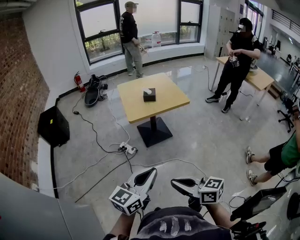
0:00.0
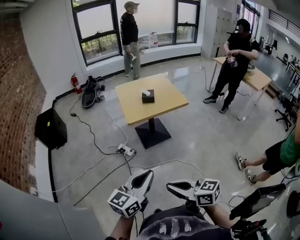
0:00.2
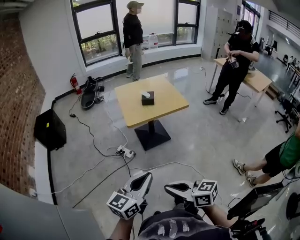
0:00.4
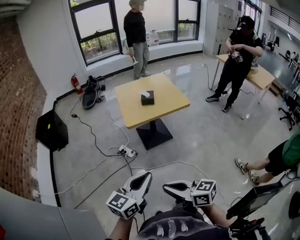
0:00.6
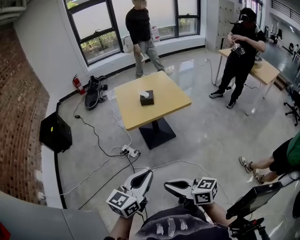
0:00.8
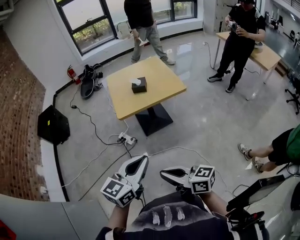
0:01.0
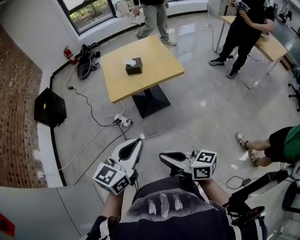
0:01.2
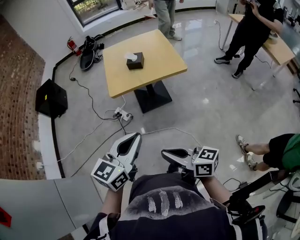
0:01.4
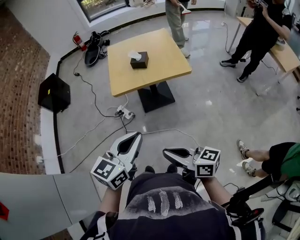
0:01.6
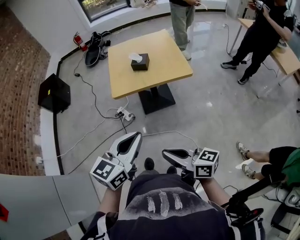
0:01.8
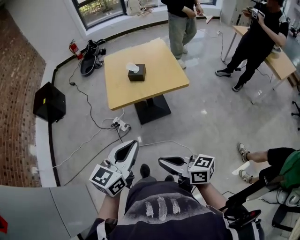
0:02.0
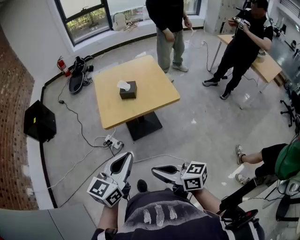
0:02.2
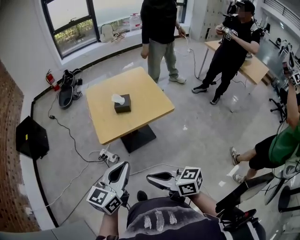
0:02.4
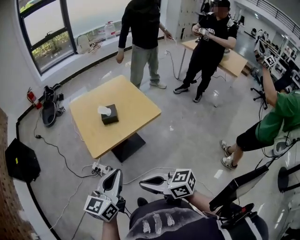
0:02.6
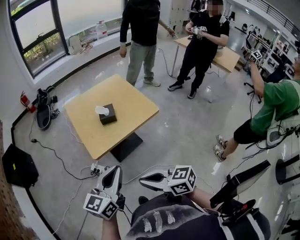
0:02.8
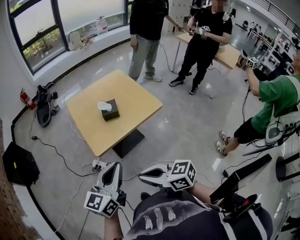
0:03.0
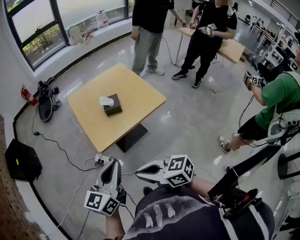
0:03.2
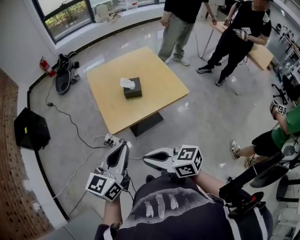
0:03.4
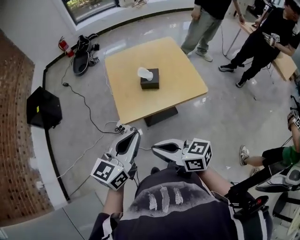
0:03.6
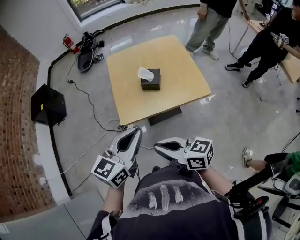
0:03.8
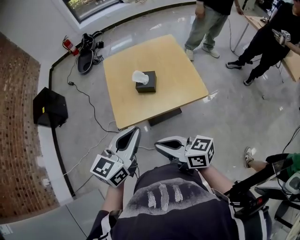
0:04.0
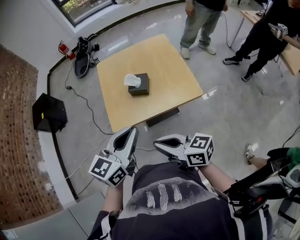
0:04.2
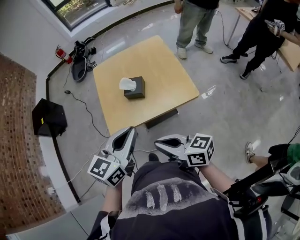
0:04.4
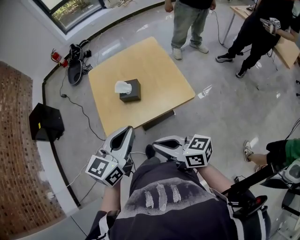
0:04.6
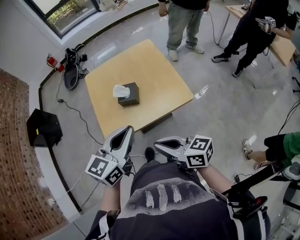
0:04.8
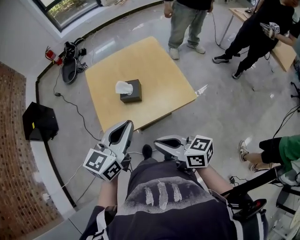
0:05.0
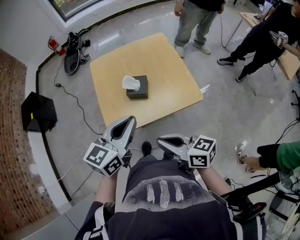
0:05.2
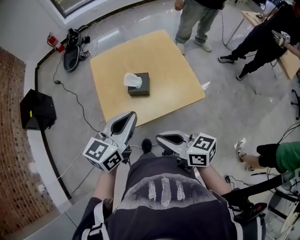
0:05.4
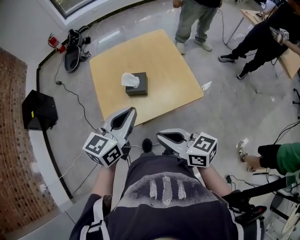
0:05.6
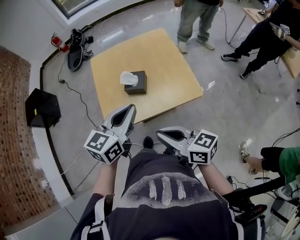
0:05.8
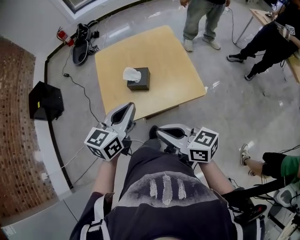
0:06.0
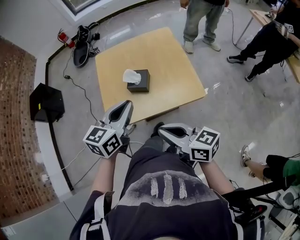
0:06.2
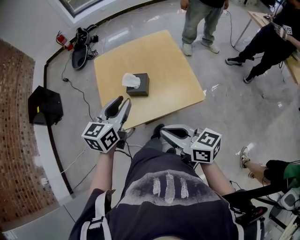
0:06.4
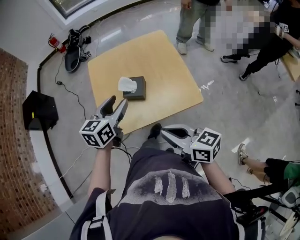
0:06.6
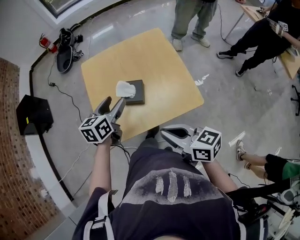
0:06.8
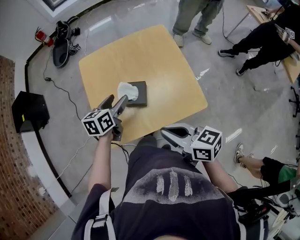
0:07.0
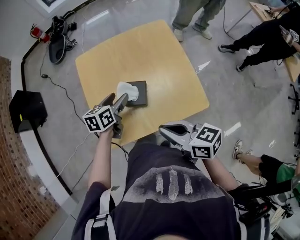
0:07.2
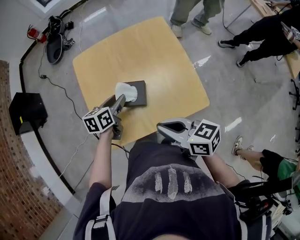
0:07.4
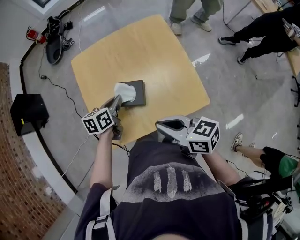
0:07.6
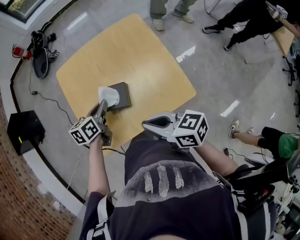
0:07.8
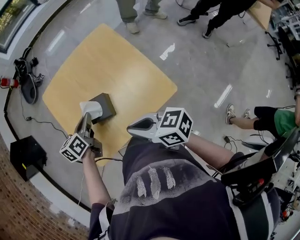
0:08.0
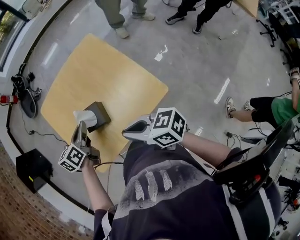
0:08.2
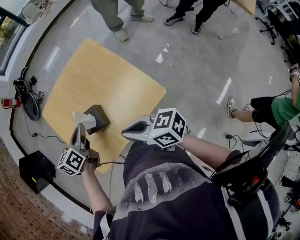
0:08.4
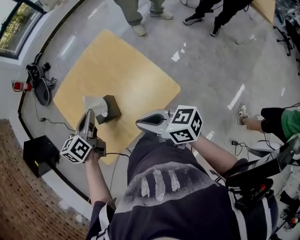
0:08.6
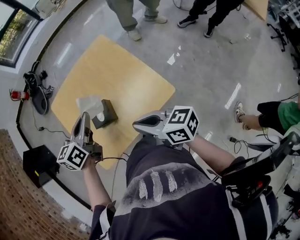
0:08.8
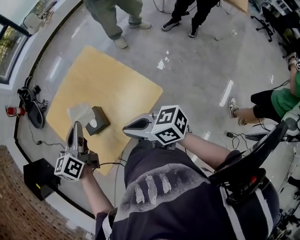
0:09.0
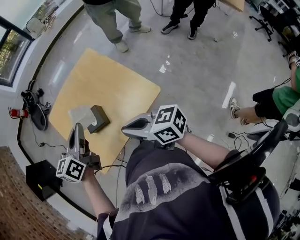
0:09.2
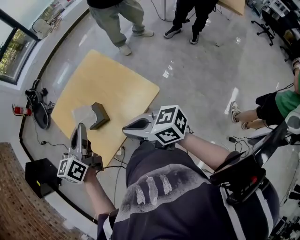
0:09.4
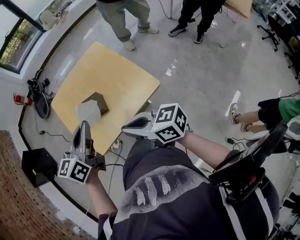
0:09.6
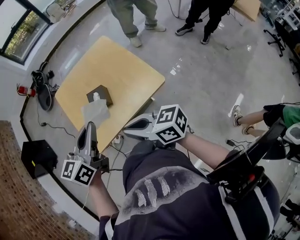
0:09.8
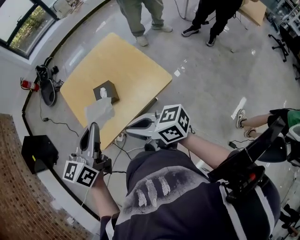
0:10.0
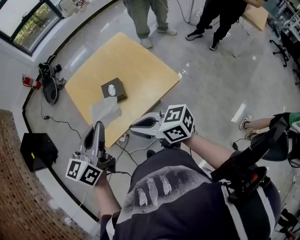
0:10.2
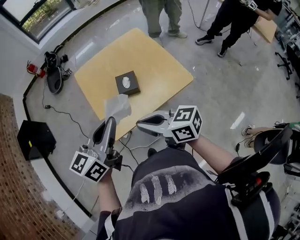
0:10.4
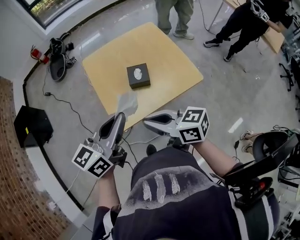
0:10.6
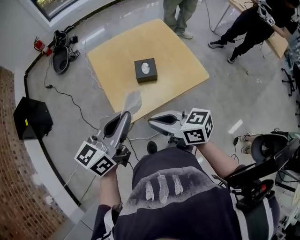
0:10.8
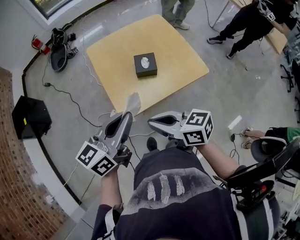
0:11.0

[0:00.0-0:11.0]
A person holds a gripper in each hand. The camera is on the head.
0:00.0 to 0:01.6: The left gripper goes some 25 cm forward and to the right, while the right gripper shifts approximately 25 cm to the right and forward.
0:01.6 to 0:03.2: Both grippers move forward and to the left, roughly 25 cm.
0:03.2 to 0:04.8: The two grippers go approximately 25 cm to the right and forward.
0:04.8 to 0:06.2: The left gripper is displaced forward by roughly 10 cm.
0:06.2 to 0:07.8: The right gripper travels forward and downward by some 20 cm, while the left gripper moves forward and downward, roughly 30 cm, turns by roughly 30 degrees, and opens, then closes once more.
0:07.8 to 0:09.4: The left gripper heads upward and backward, covering some 25 cm, and changes its angle by approximately 30 degrees. Meanwhile the right gripper is displaced backward, upward and to the right by about 15 cm.
0:09.4 to 0:11.0: The right gripper heads to the left, covering some 25 cm, while the left gripper is displaced to the left and backward by some 25 cm.

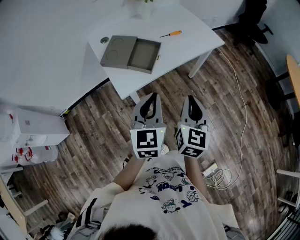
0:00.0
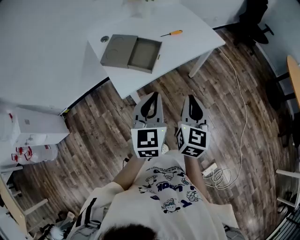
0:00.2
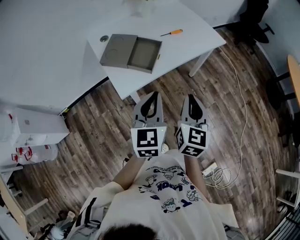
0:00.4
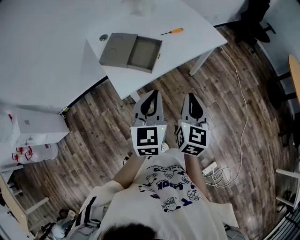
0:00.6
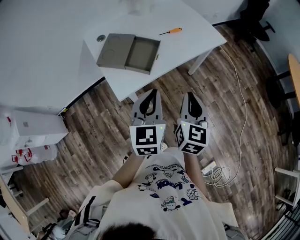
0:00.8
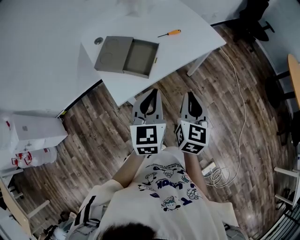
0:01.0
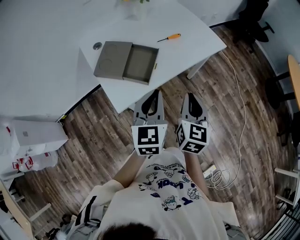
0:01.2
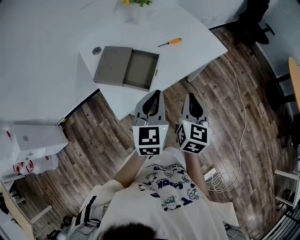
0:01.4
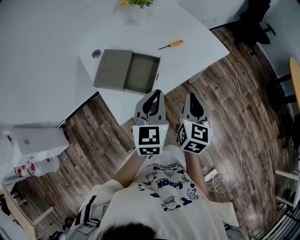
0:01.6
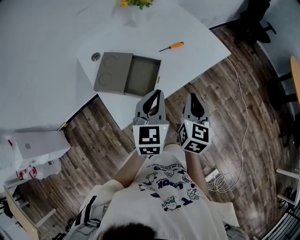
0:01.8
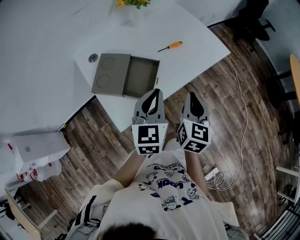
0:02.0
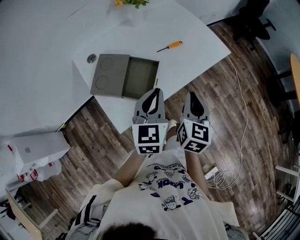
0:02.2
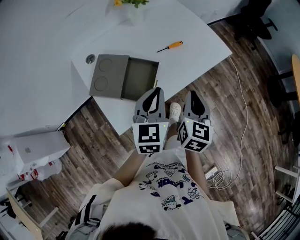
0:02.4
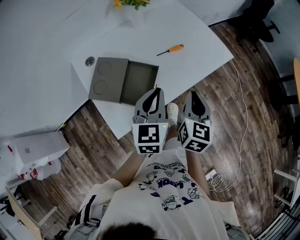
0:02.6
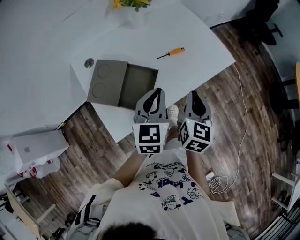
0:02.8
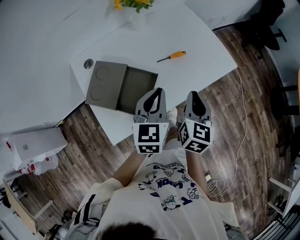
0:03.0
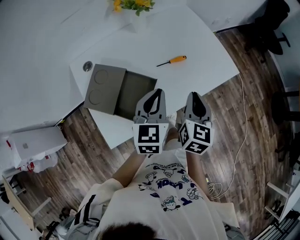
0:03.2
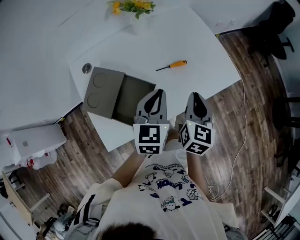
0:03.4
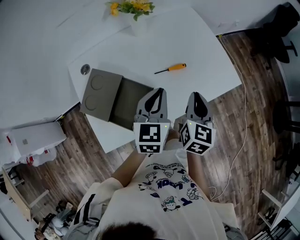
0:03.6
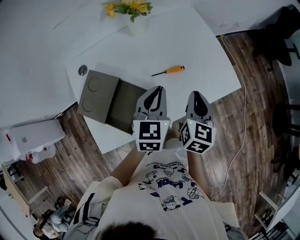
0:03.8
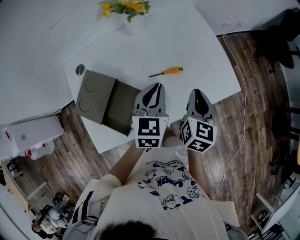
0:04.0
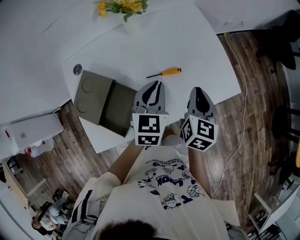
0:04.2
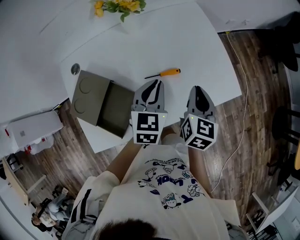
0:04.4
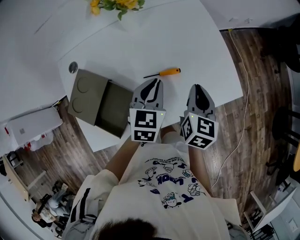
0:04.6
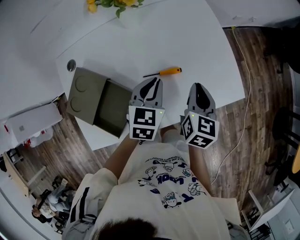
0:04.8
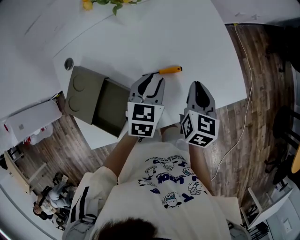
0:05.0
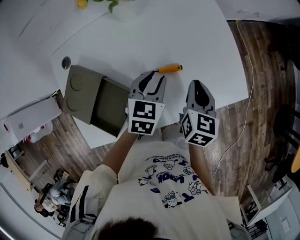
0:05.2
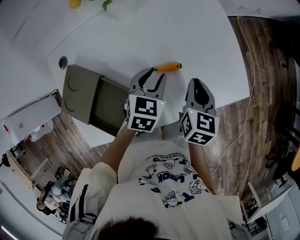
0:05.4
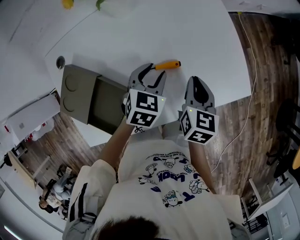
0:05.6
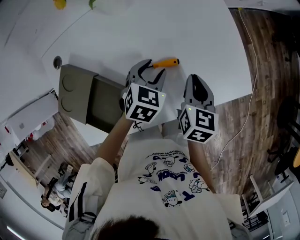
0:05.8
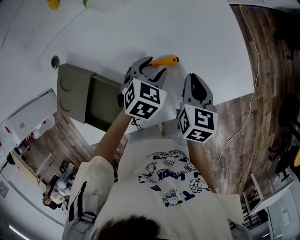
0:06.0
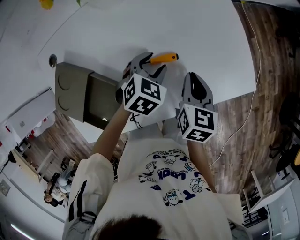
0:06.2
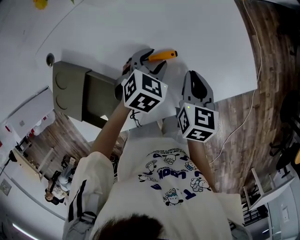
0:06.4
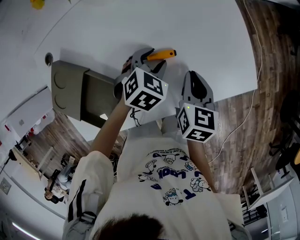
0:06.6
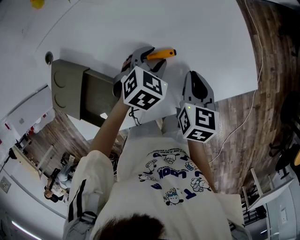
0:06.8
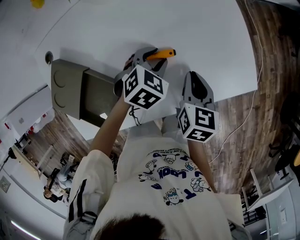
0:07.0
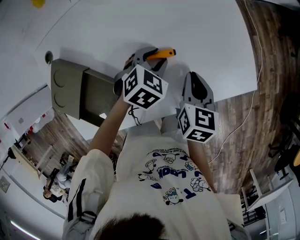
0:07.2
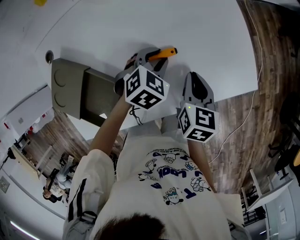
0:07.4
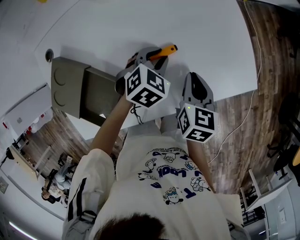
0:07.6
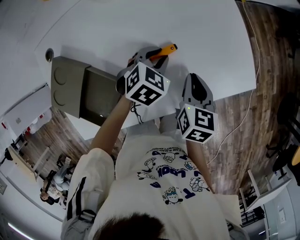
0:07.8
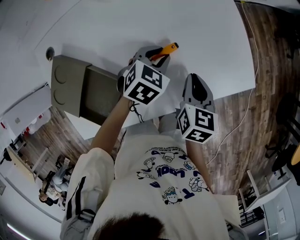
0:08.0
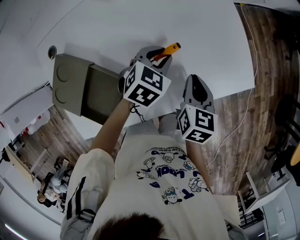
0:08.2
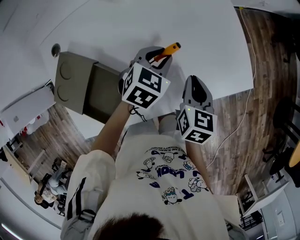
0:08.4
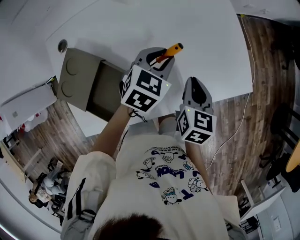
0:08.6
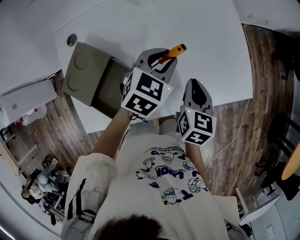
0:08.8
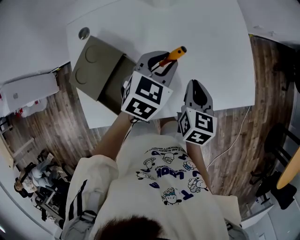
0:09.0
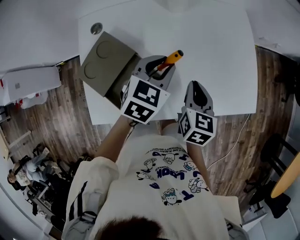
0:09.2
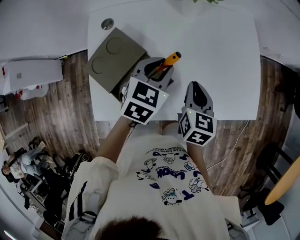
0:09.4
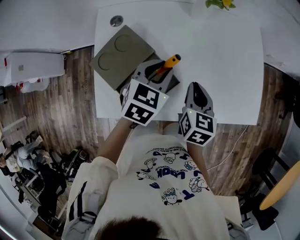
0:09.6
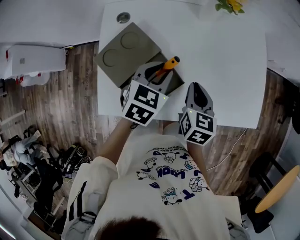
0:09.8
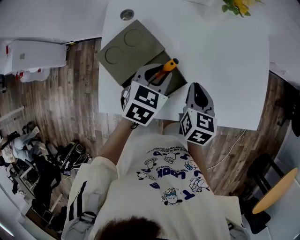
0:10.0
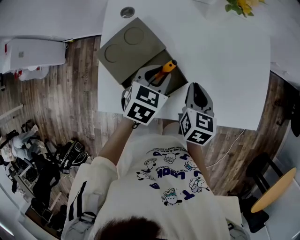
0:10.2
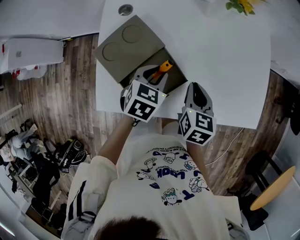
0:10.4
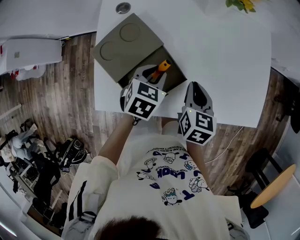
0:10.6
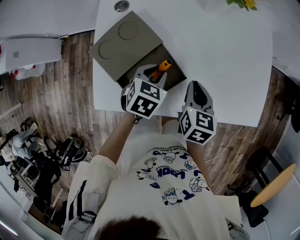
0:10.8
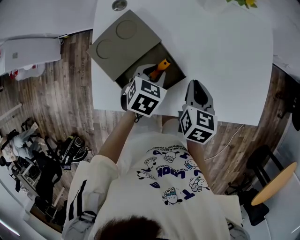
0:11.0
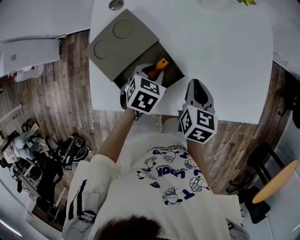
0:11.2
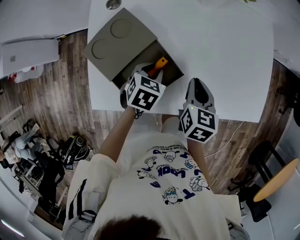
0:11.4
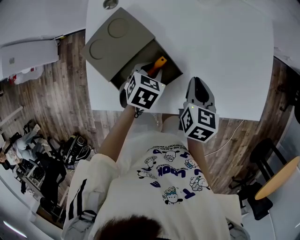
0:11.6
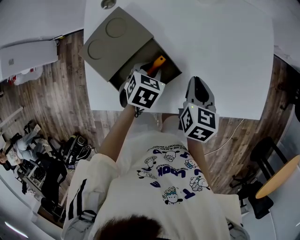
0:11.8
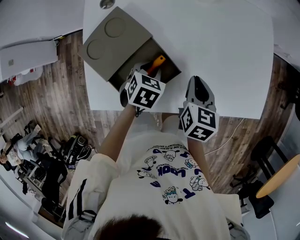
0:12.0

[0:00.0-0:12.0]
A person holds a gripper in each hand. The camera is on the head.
0:00.0 to 0:01.6: The grippers both shift forward by about 15 cm.
0:01.6 to 0:03.0: The grippers both shift forward by approximately 15 cm.
0:03.0 to 0:04.4: Both grippers travel together forward, about 20 cm.
0:04.4 to 0:06.0: Both grippers travel together downward, about 10 cm. The left gripper changes its angle by some 30 degrees, and opens up.
0:06.0 to 0:07.6: The left gripper closes its fingers.
0:07.6 to 0:09.0: The right gripper goes roughly 10 cm to the left and upward, while the left gripper travels upward and to the left by about 15 cm, and turns by approximately 30 degrees.
0:09.0 to 0:10.4: The left gripper is displaced to the left, backward and downward by about 20 cm, and turns by some 20 degrees. The right gripper moves to the left, some 10 cm.
0:10.4 to 0:12.0: The left gripper travels downward by some 10 cm.

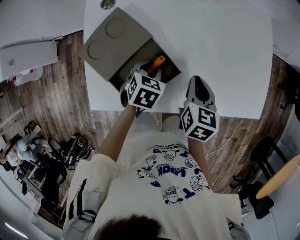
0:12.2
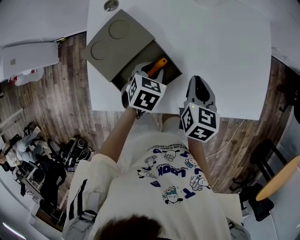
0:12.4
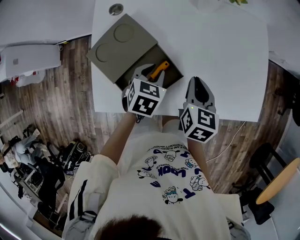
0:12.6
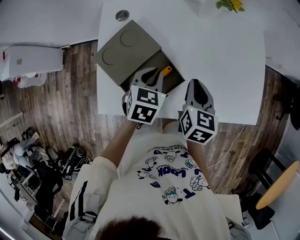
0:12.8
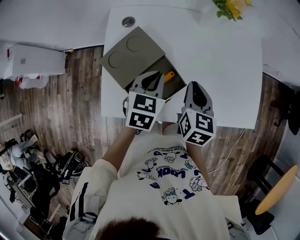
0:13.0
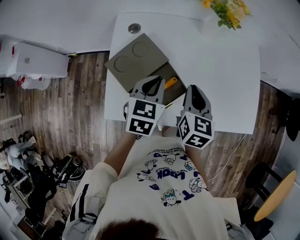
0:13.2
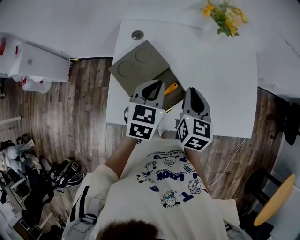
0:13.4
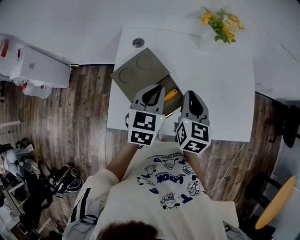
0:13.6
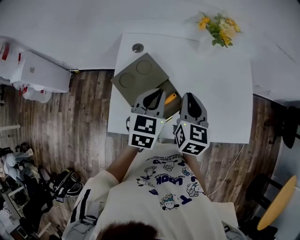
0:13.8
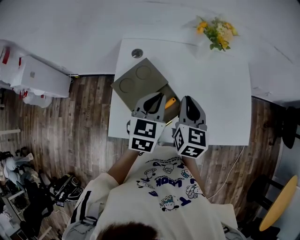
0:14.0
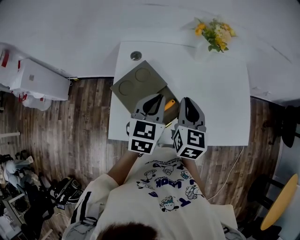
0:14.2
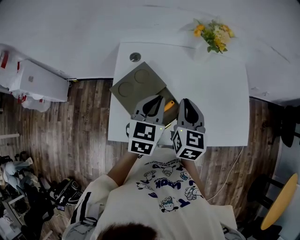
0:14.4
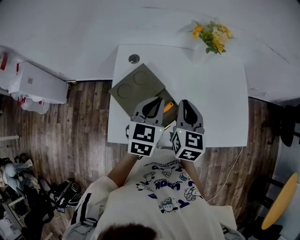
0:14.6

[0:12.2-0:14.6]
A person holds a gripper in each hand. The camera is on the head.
0:12.2 to 0:13.4: The right gripper goes approximately 15 cm upward and to the left; the left gripper shifts approximately 20 cm upward, rotates about 30 degrees, and closes.
0:13.4 to 0:14.6: The grippers make only small movements.
